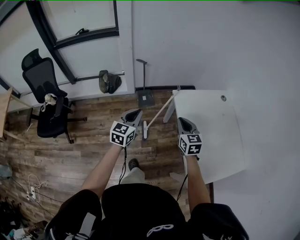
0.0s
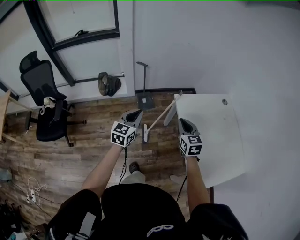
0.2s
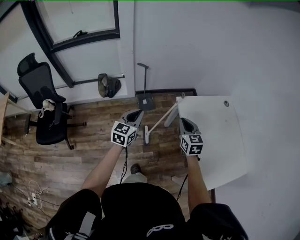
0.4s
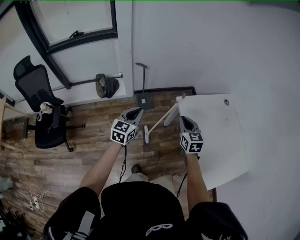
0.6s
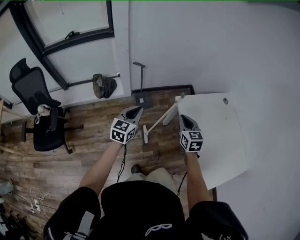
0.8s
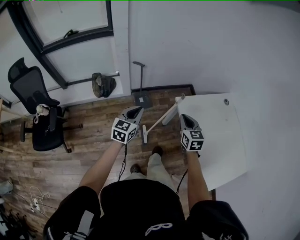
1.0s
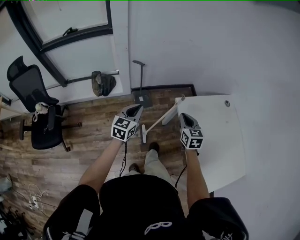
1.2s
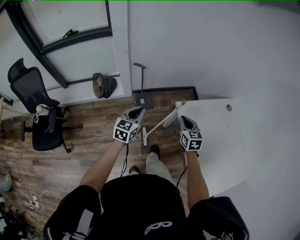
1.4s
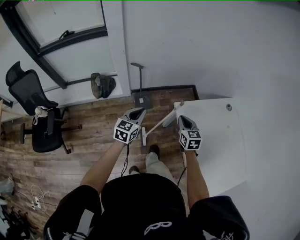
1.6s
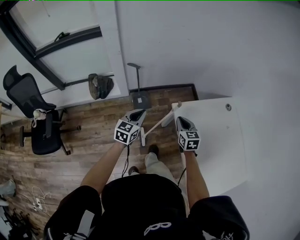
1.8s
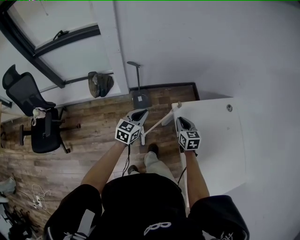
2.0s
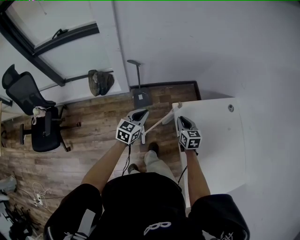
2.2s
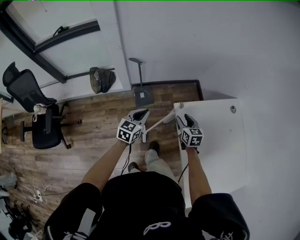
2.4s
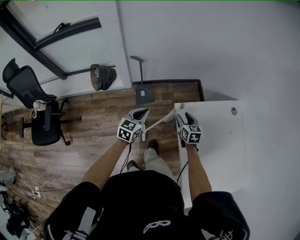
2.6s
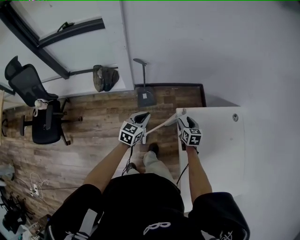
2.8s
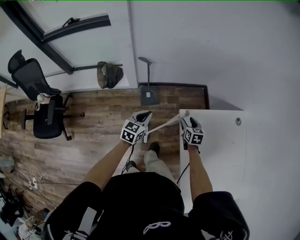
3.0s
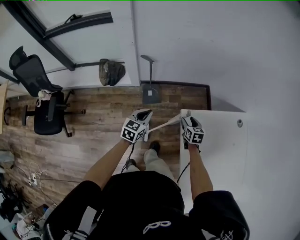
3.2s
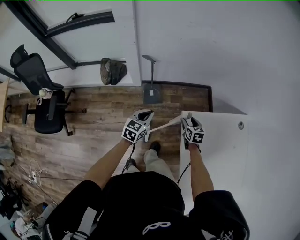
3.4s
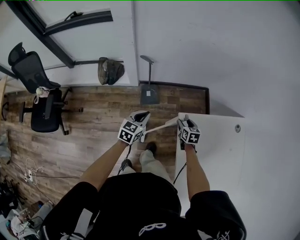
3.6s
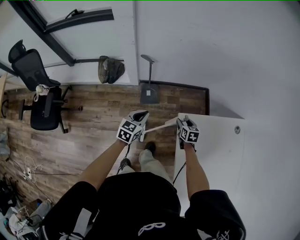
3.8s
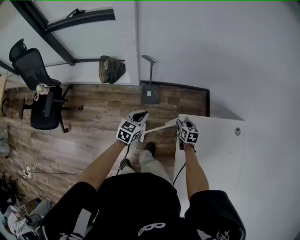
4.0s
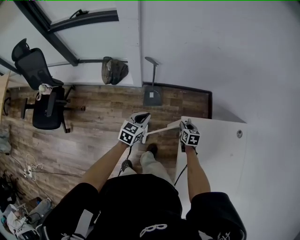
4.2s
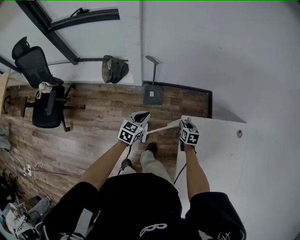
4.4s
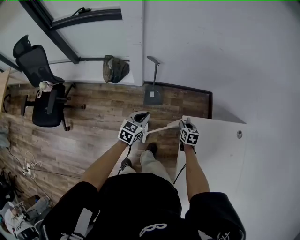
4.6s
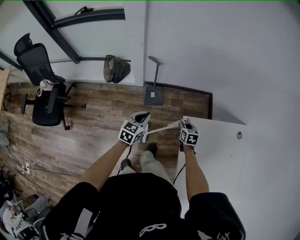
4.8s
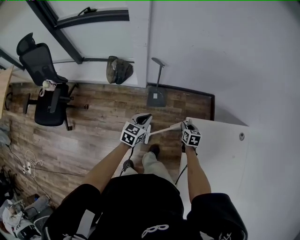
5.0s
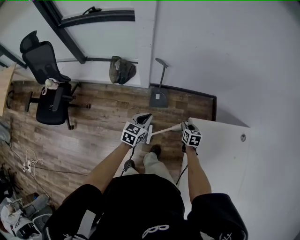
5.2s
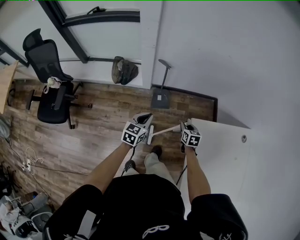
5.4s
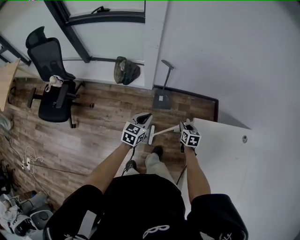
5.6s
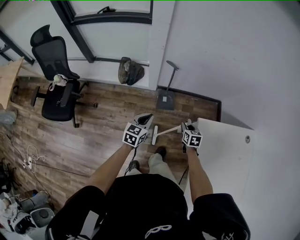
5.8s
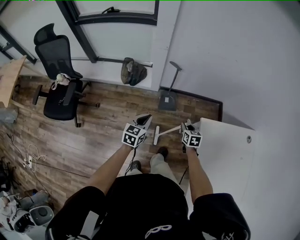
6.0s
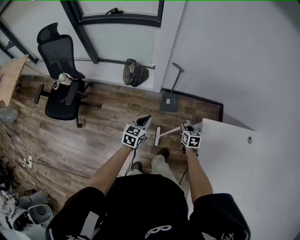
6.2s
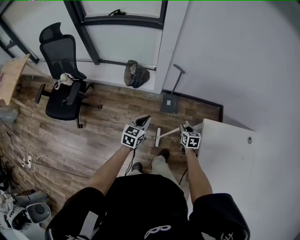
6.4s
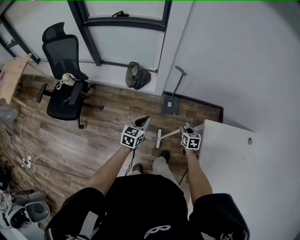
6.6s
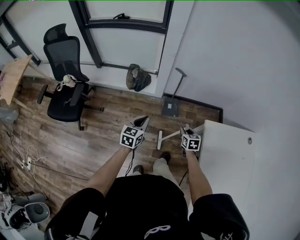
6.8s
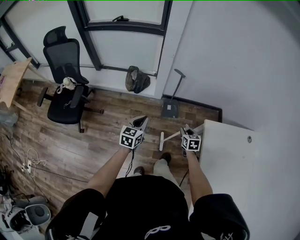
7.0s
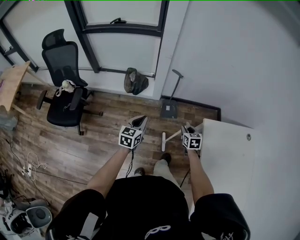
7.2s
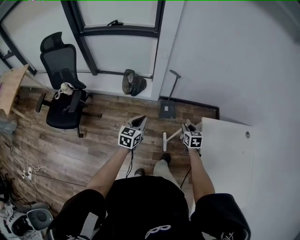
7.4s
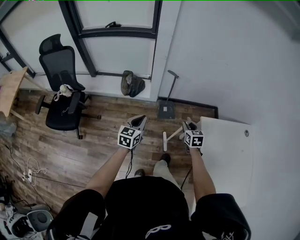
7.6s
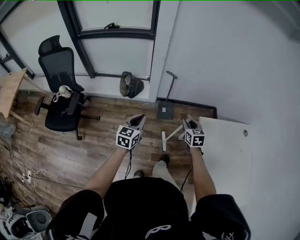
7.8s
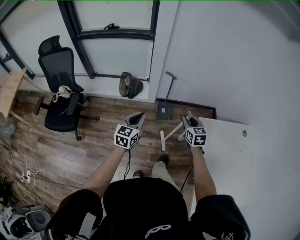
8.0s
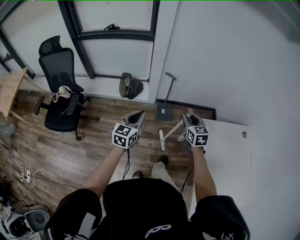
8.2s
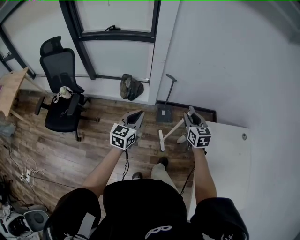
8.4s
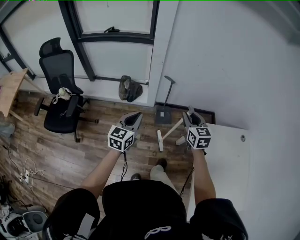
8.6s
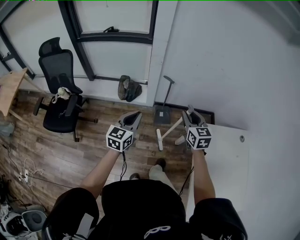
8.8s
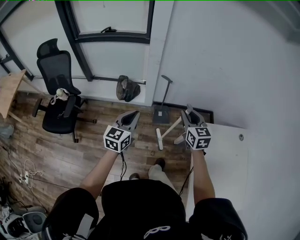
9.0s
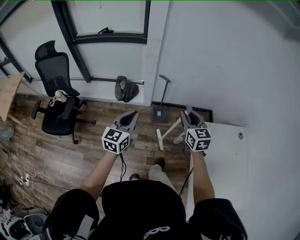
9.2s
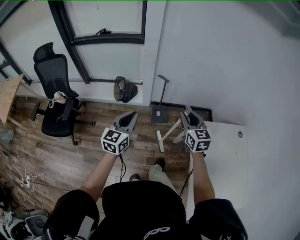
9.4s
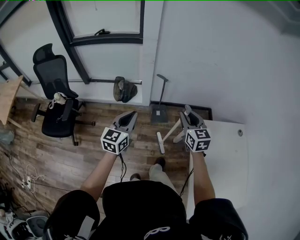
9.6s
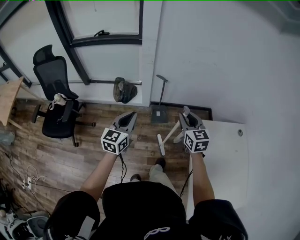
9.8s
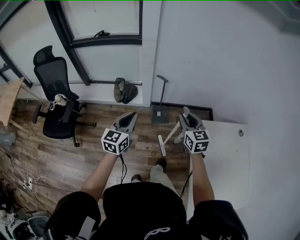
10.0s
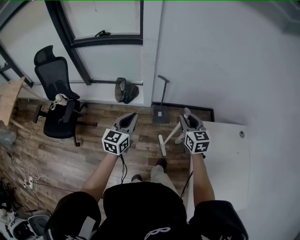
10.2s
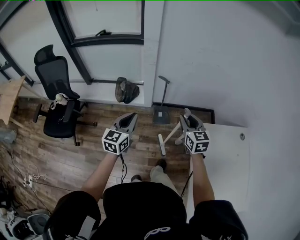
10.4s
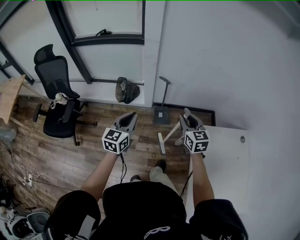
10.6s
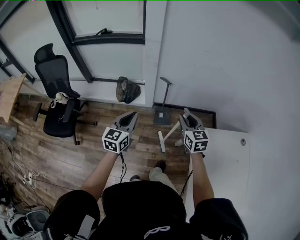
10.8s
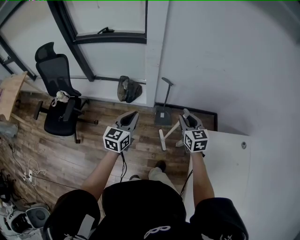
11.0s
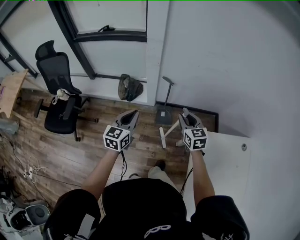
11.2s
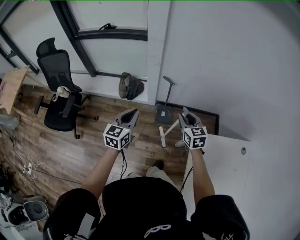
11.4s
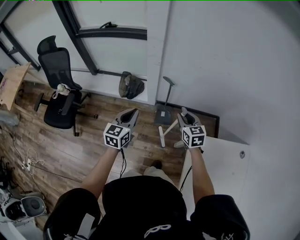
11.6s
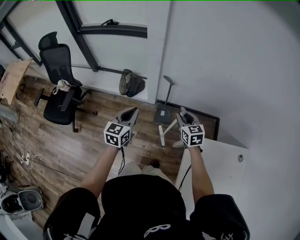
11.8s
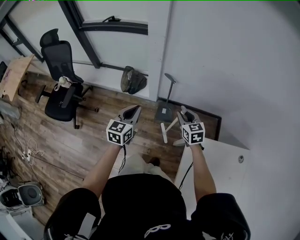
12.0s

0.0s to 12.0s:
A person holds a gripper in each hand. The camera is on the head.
0.0s to 1.6s: The right gripper is displaced forward and downward by approximately 20 cm, while the left gripper heads forward, covering some 20 cm.
1.6s to 3.0s: The right gripper shifts roughly 20 cm downward and forward, and opens up; the left gripper is displaced downward and forward by some 10 cm.
3.0s to 4.4s: The right gripper moves downward, some 5 cm, and closes its fingers.
4.4s to 6.0s: Both grippers travel together to the left and backward, roughly 15 cm.
6.0s to 7.6s: The right gripper goes about 10 cm upward and backward, while the left gripper shifts some 10 cm to the left, upward and backward.
7.6s to 9.0s: The right gripper goes approximately 20 cm upward, while the left gripper heads upward, covering approximately 10 cm.
9.0s to 10.4s: There are only small adjustments of the grippers.
10.4s to 12.0s: The right gripper is displaced forward and downward by about 20 cm, while the left gripper heads forward, to the right and downward, covering roughly 15 cm.

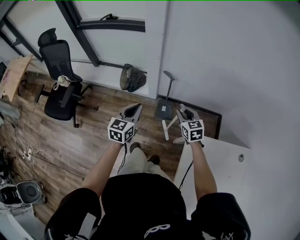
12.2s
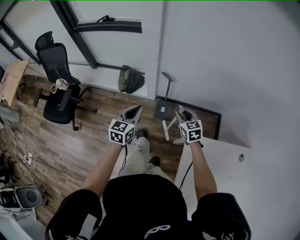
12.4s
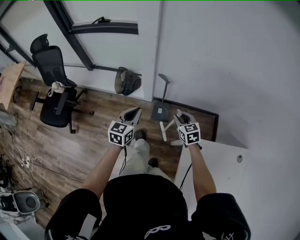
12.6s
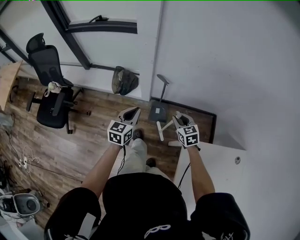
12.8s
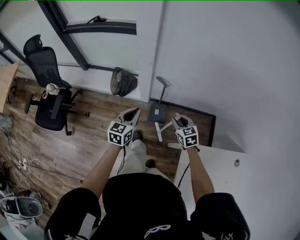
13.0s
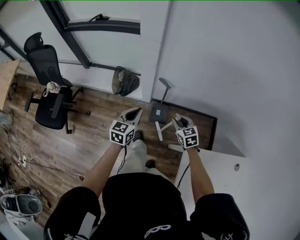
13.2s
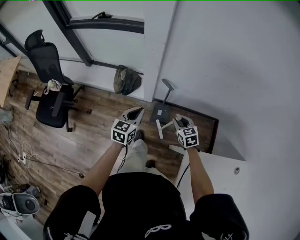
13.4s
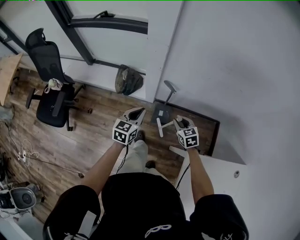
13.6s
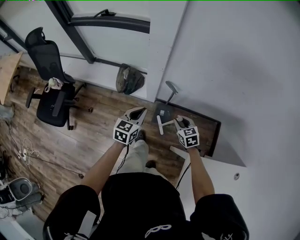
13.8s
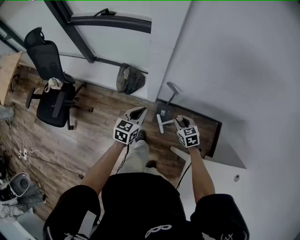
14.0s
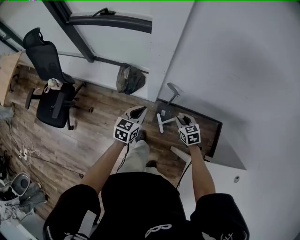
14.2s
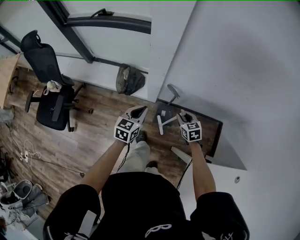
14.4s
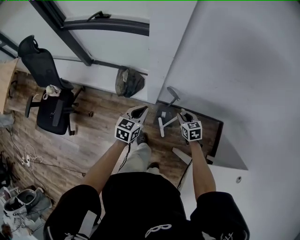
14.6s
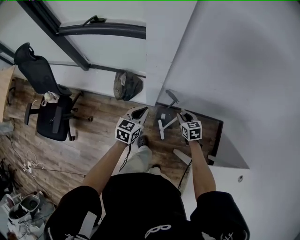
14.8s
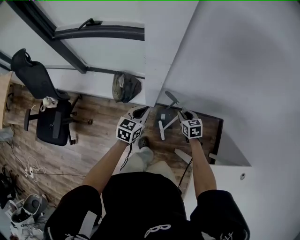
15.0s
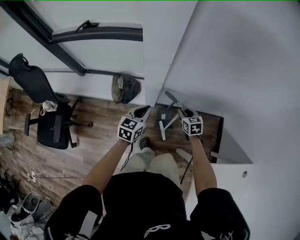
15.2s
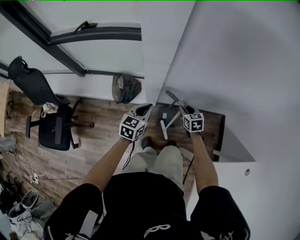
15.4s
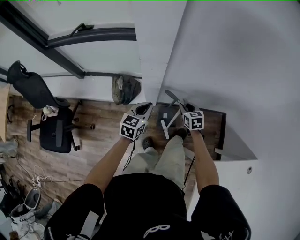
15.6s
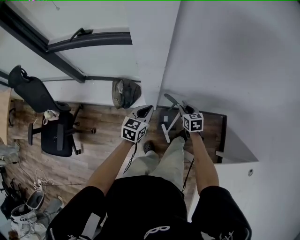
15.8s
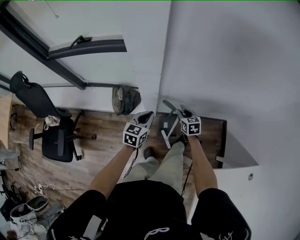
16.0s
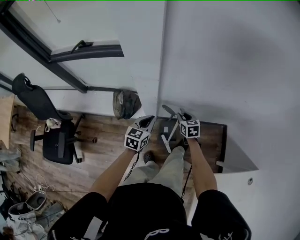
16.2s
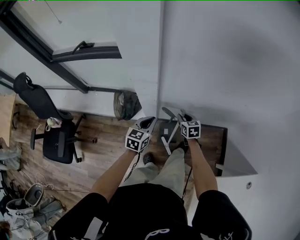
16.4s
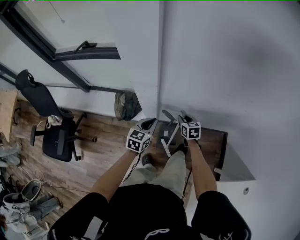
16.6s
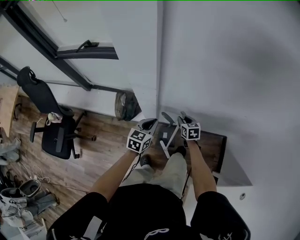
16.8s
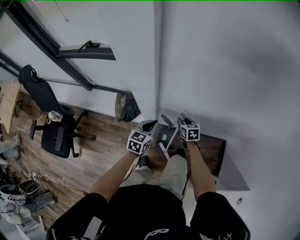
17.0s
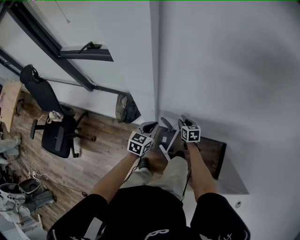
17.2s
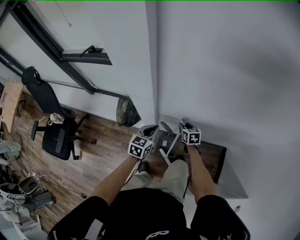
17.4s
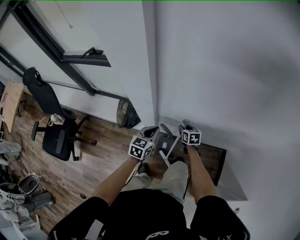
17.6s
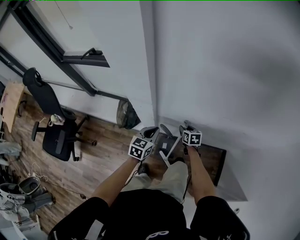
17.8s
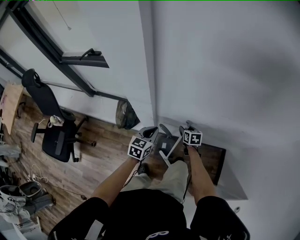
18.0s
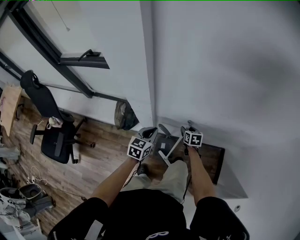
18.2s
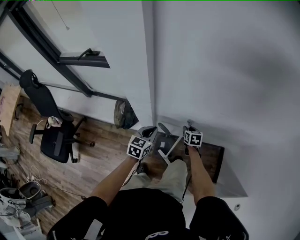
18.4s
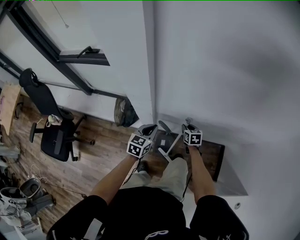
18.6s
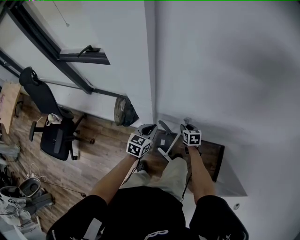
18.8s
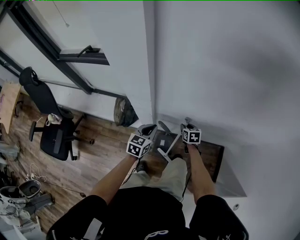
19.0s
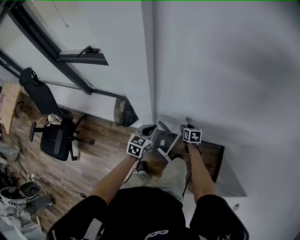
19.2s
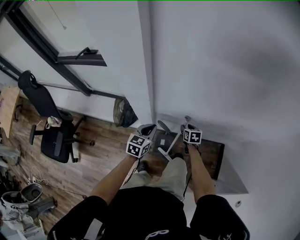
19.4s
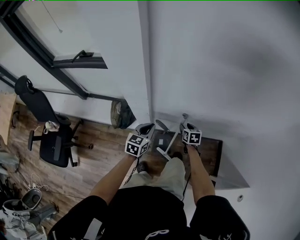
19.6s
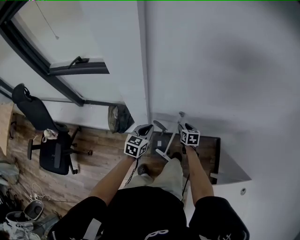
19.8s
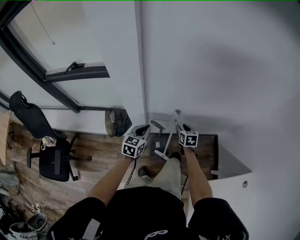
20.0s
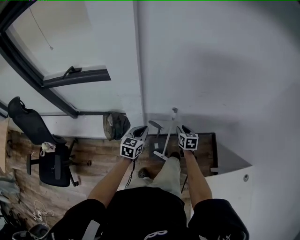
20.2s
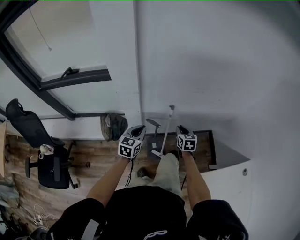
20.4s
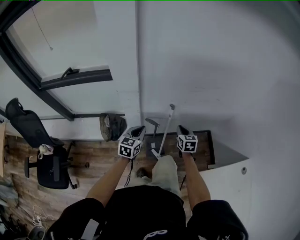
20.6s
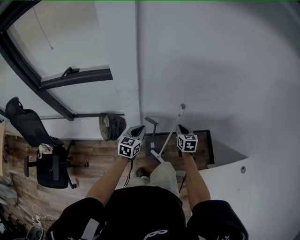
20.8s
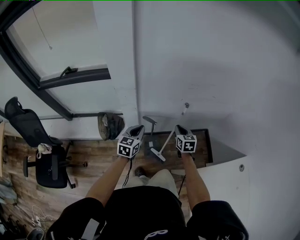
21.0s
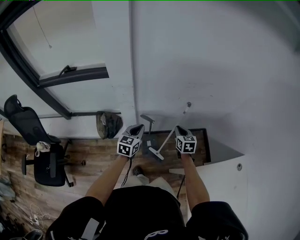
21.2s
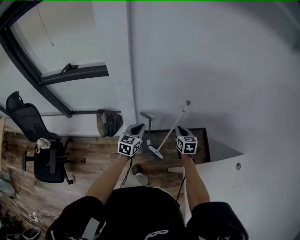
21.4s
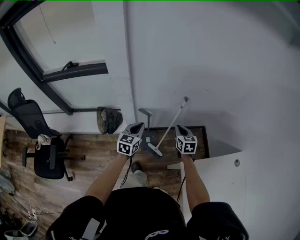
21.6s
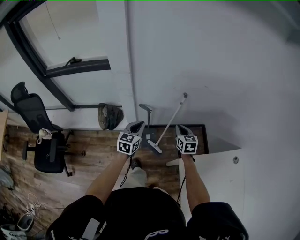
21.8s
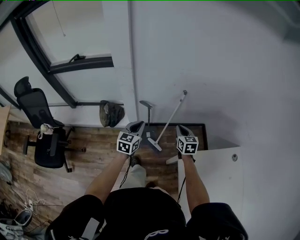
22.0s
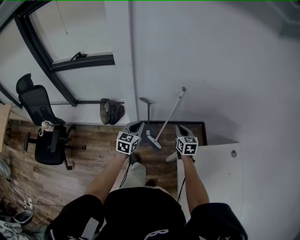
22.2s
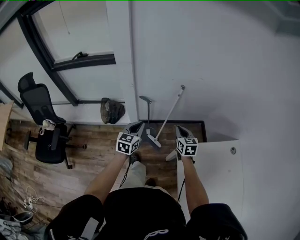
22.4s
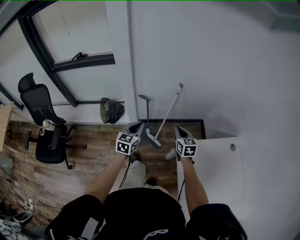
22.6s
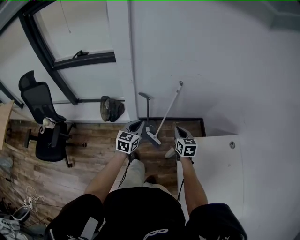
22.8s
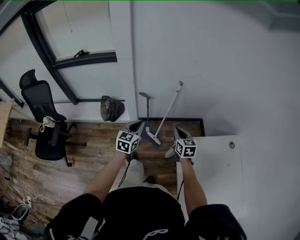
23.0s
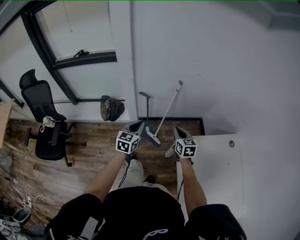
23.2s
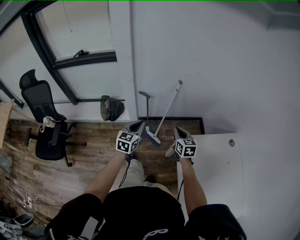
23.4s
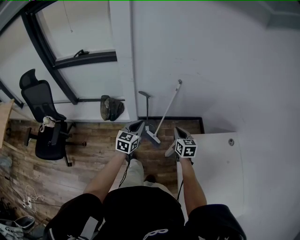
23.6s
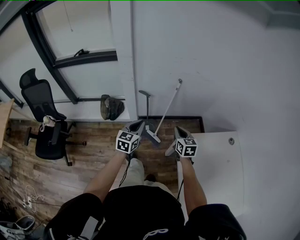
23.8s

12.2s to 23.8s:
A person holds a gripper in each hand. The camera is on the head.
12.2s to 13.6s: The two grippers go about 15 cm forward and downward.
13.6s to 15.0s: The two grippers go roughly 15 cm forward.
15.0s to 16.6s: The left gripper heads to the right and forward, covering roughly 10 cm; the right gripper heads forward, covering approximately 10 cm.
16.6s to 18.0s: The right gripper moves about 5 cm.
18.0s to 19.4s: The grippers make only small movements.
19.4s to 21.0s: The right gripper goes roughly 20 cm upward and backward, rotates about 20 degrees, and closes, while the left gripper shifts about 10 cm backward and upward.
21.0s to 22.4s: Both grippers move backward and to the right, about 25 cm.
22.4s to 23.8s: Both grippers travel together backward, approximately 10 cm.
